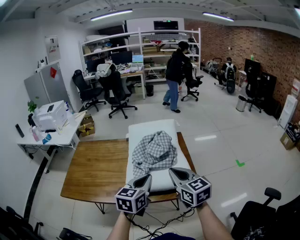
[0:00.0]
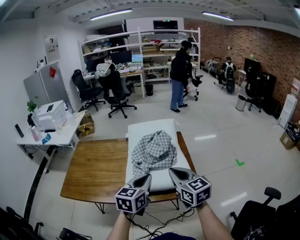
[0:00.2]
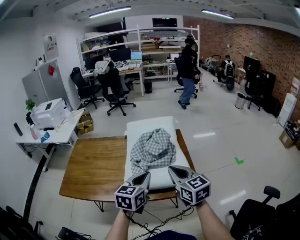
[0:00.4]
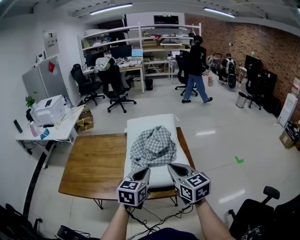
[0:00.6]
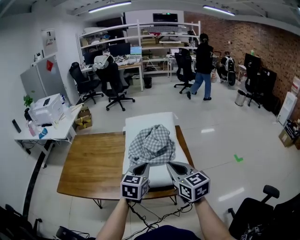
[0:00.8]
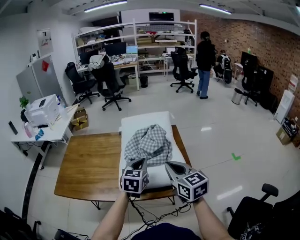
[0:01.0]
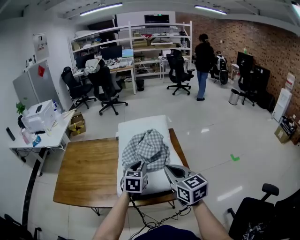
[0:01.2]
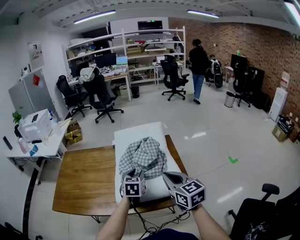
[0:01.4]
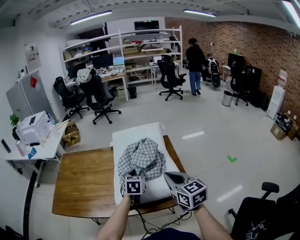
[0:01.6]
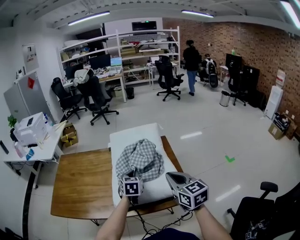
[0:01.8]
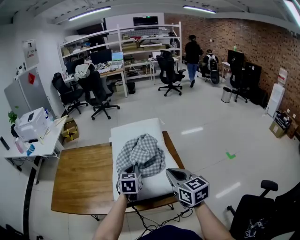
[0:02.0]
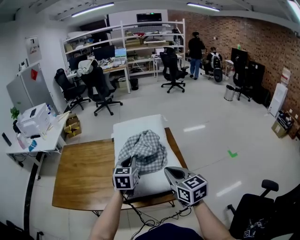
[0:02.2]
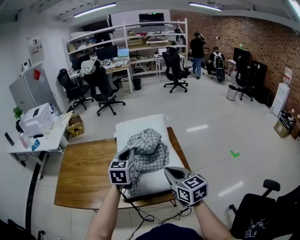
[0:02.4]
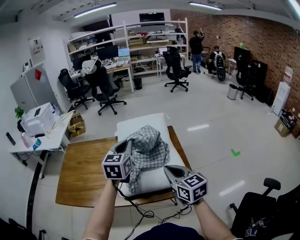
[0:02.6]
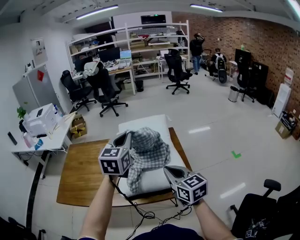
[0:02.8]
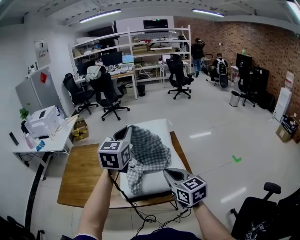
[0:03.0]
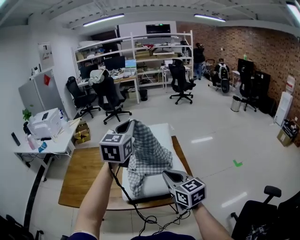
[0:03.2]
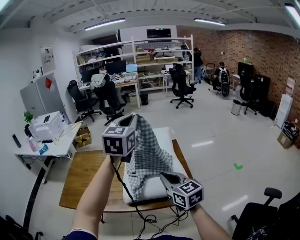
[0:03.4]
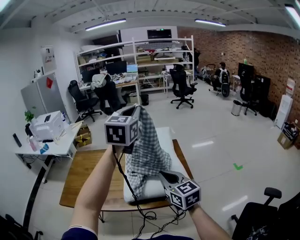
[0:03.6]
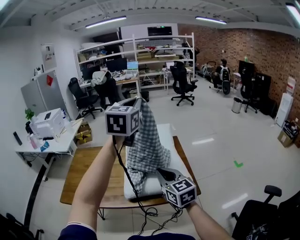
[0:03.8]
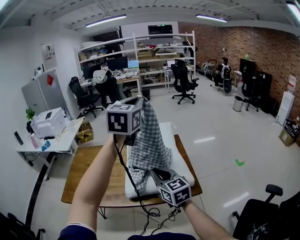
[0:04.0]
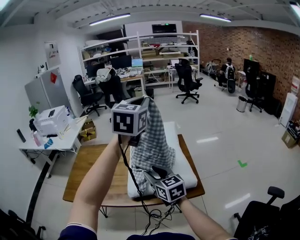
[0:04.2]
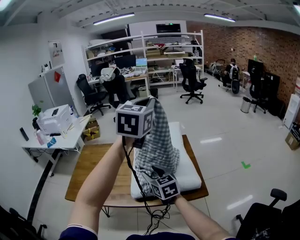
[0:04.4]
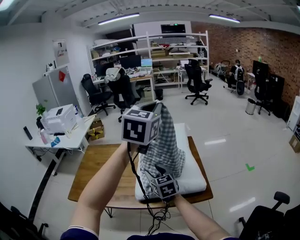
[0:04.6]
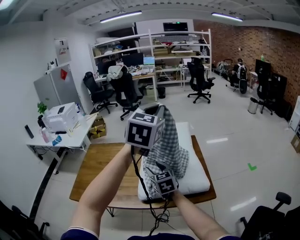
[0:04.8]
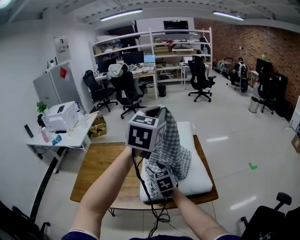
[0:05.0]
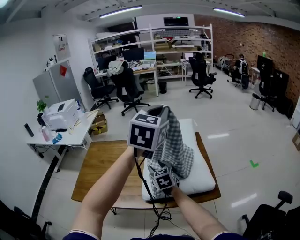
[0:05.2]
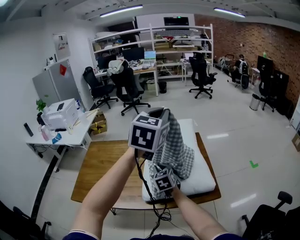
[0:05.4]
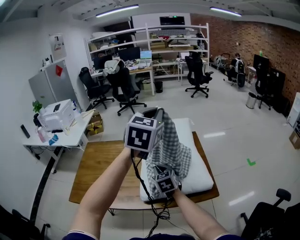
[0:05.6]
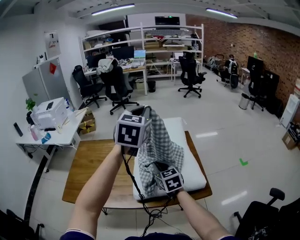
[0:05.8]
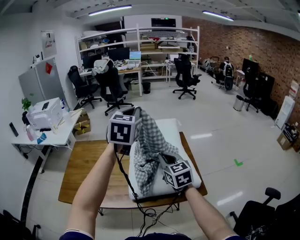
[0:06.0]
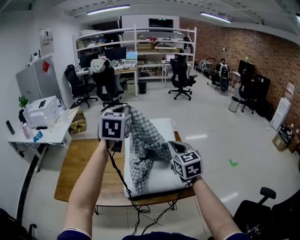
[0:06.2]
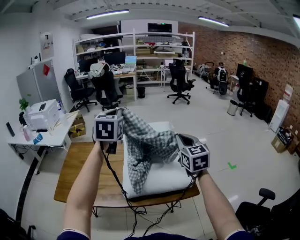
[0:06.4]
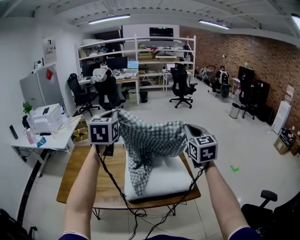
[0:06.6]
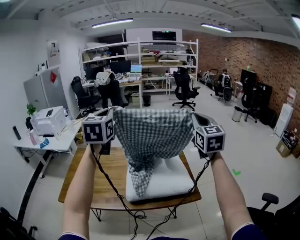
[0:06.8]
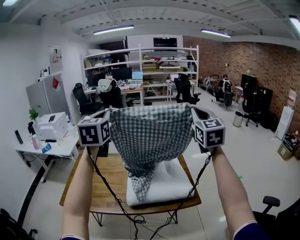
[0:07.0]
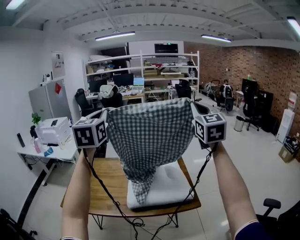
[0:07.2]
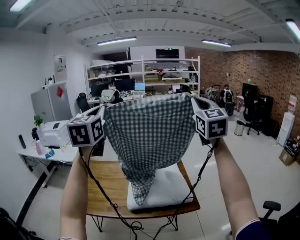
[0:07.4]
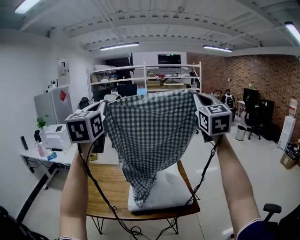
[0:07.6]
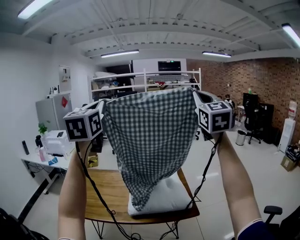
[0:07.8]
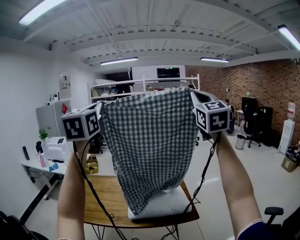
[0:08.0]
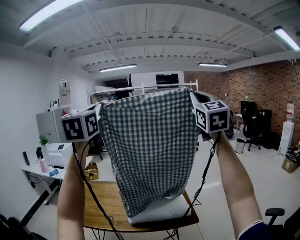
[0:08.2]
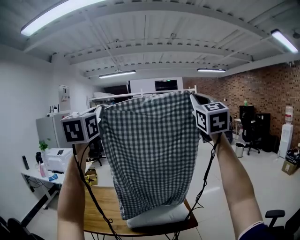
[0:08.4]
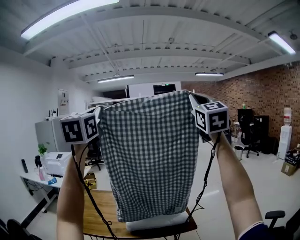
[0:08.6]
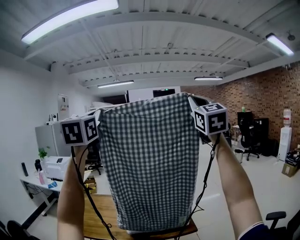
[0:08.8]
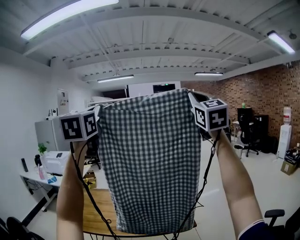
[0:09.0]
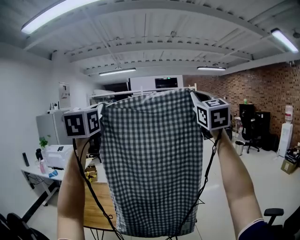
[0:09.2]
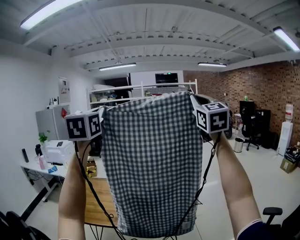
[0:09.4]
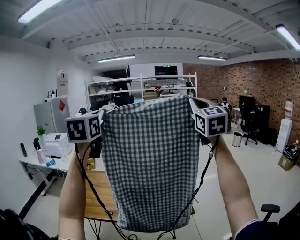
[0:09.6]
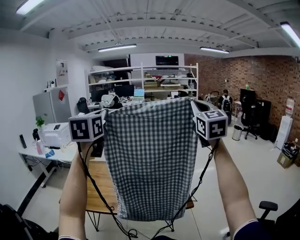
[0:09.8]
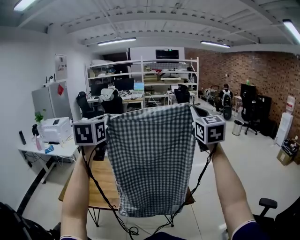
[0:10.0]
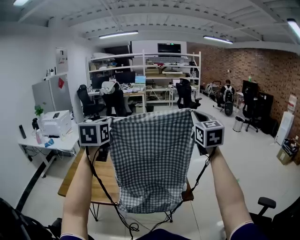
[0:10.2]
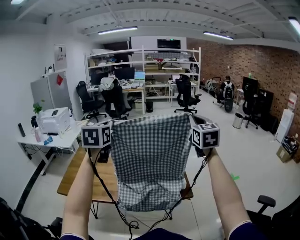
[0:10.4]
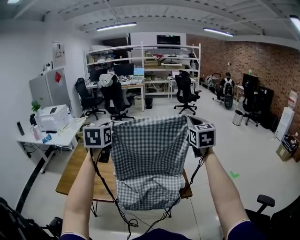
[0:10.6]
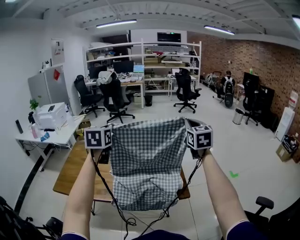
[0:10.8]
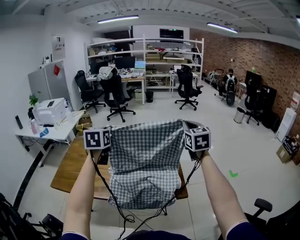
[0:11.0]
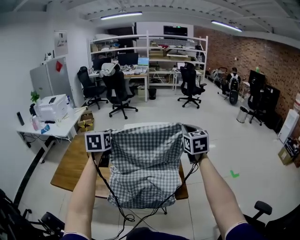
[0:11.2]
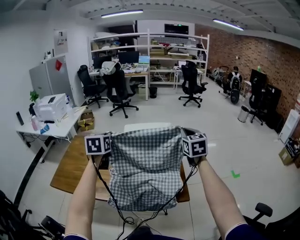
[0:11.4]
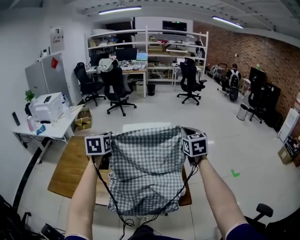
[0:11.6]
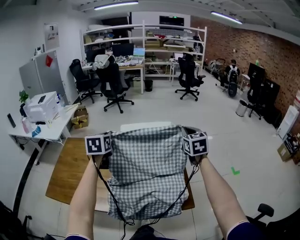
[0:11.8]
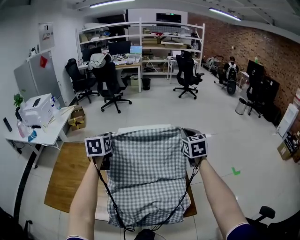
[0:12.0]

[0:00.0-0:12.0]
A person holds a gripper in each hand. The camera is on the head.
0:00.0 to 0:01.6: The right gripper shifts by some 5 cm. Meanwhile the left gripper moves forward and downward, some 20 cm, rotates roughly 20 degrees, and opens up.
0:01.6 to 0:03.0: The left gripper travels upward by about 30 cm, swivels some 30 degrees, and closes.
0:03.0 to 0:04.4: The left gripper goes about 10 cm upward. The right gripper travels to the left and forward by approximately 15 cm, and opens up.
0:04.4 to 0:06.0: The right gripper goes some 10 cm to the right and forward, reaches some 10 cm downward, then returns, and closes its fingers. Meanwhile the left gripper heads downward, to the left and forward, covering about 10 cm.
0:06.0 to 0:07.6: The left gripper is displaced upward, backward and to the left by some 30 cm, and turns by approximately 30 degrees. The right gripper heads upward, covering some 40 cm, and points its fingers approximately 30 degrees further upward.
0:07.6 to 0:09.0: The grippers both shift upward and backward by about 15 cm.
0:09.0 to 0:10.4: The grippers both shift downward and forward by some 35 cm. The right gripper turns by approximately 30 degrees; the left gripper changes its angle by some 30 degrees.
0:10.4 to 0:12.0: Both grippers travel together forward and downward, some 30 cm. The right gripper swivels some 20 degrees.

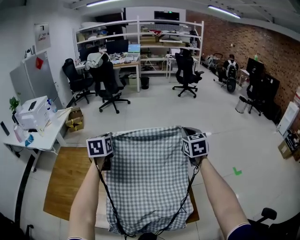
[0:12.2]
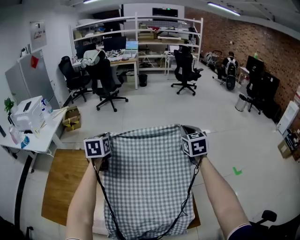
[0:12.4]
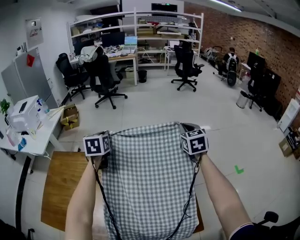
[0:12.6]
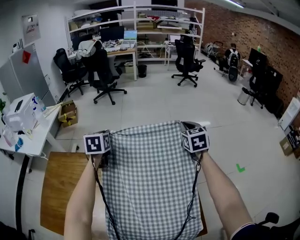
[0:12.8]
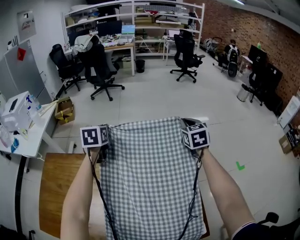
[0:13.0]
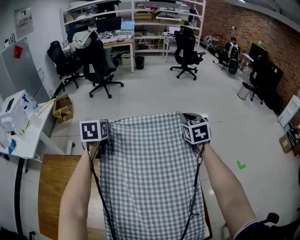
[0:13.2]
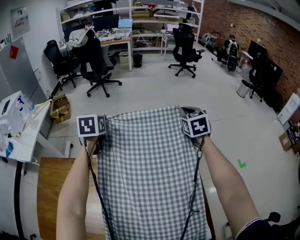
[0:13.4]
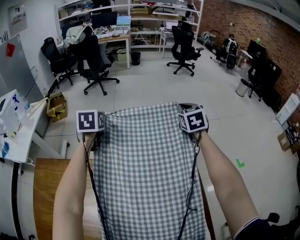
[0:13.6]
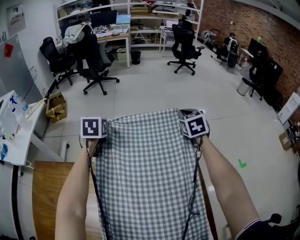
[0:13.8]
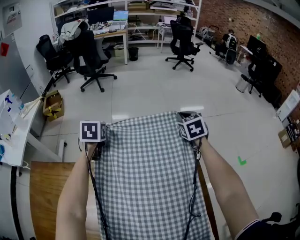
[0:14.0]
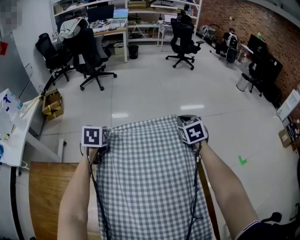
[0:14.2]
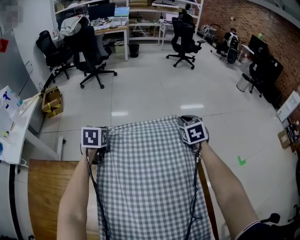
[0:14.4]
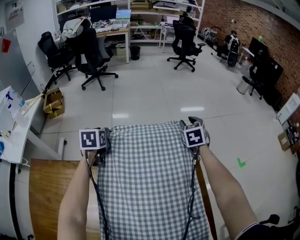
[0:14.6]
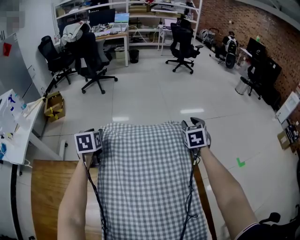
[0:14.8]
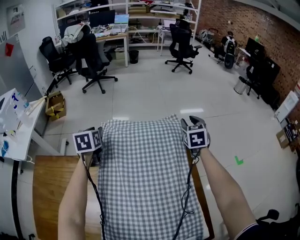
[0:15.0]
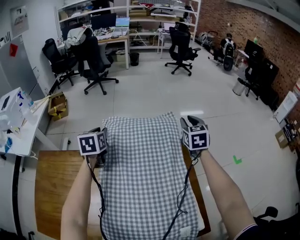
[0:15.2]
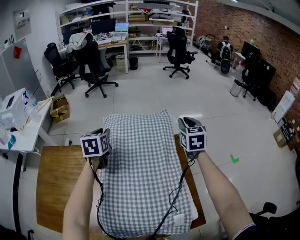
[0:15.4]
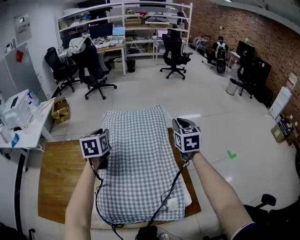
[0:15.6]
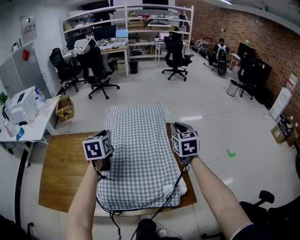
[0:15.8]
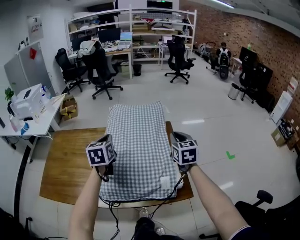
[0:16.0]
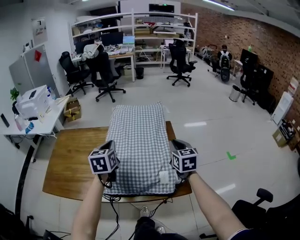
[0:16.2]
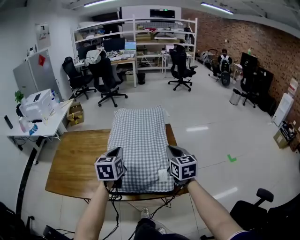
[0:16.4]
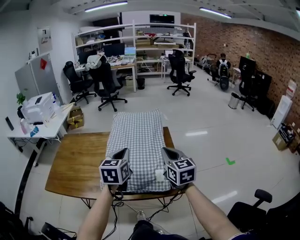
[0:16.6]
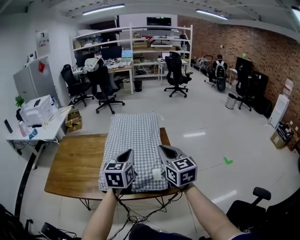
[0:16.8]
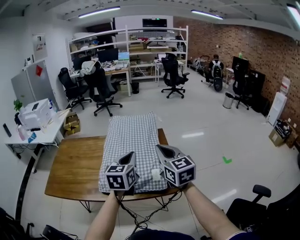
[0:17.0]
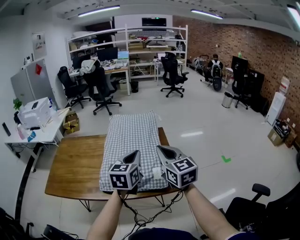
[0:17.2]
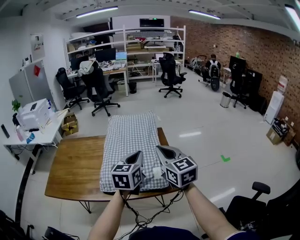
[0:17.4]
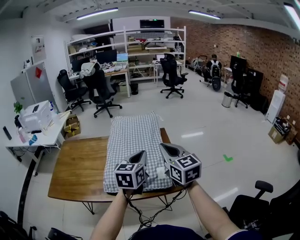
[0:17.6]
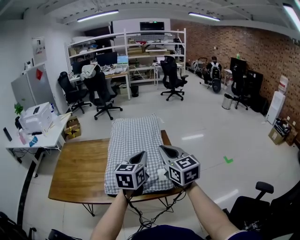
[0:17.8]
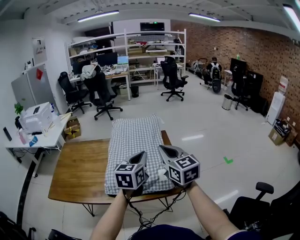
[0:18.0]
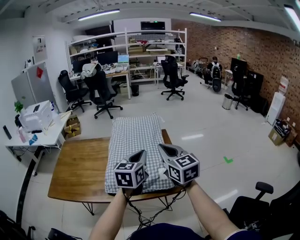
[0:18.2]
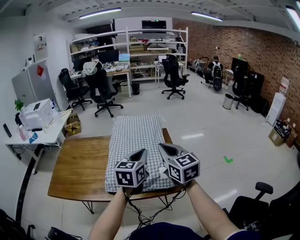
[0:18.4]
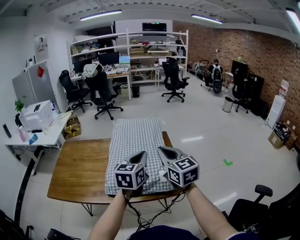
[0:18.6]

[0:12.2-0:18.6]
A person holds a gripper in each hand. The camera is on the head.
0:12.2 to 0:13.8: The two grippers go roughly 30 cm forward and downward.
0:13.8 to 0:15.4: The grippers both shift backward by approximately 15 cm. The left gripper opens, while the right gripper opens, then closes once more.
0:15.4 to 0:17.0: The right gripper travels backward by approximately 40 cm, and changes its angle by approximately 30 degrees. The left gripper goes roughly 40 cm backward and to the right, and closes up.
0:17.0 to 0:18.6: The grippers move only a little.

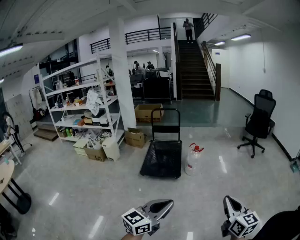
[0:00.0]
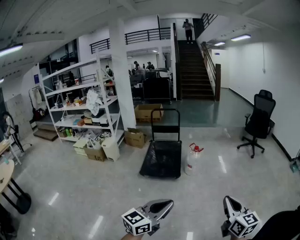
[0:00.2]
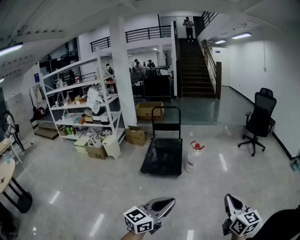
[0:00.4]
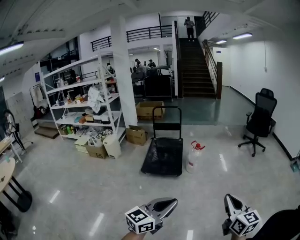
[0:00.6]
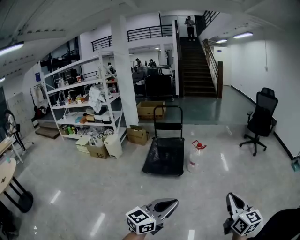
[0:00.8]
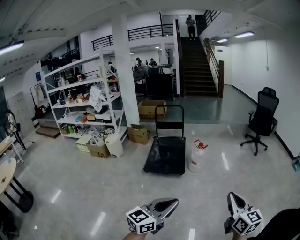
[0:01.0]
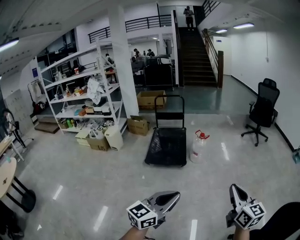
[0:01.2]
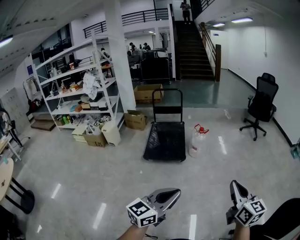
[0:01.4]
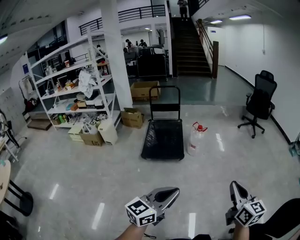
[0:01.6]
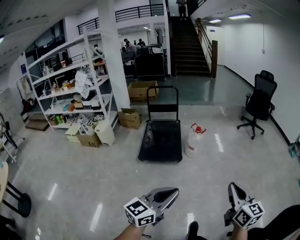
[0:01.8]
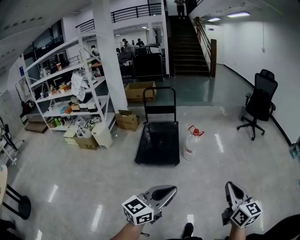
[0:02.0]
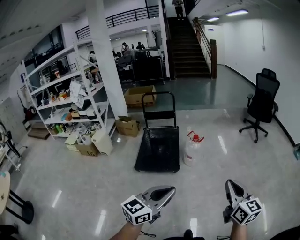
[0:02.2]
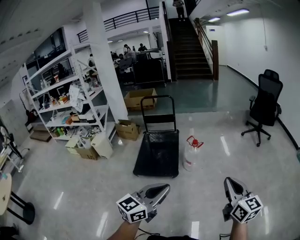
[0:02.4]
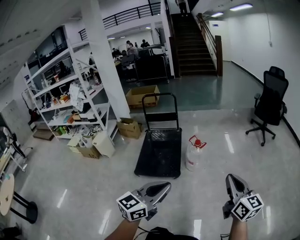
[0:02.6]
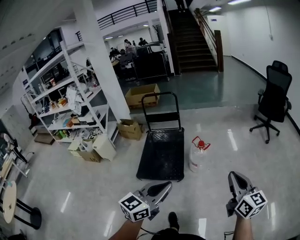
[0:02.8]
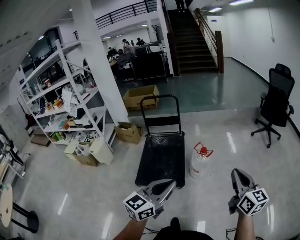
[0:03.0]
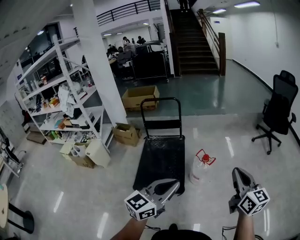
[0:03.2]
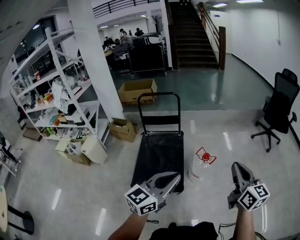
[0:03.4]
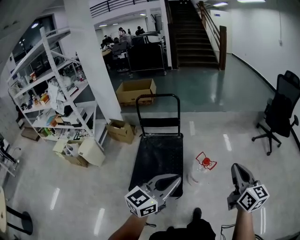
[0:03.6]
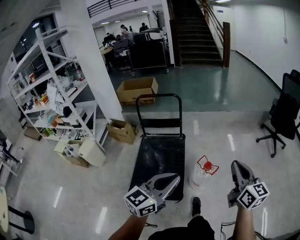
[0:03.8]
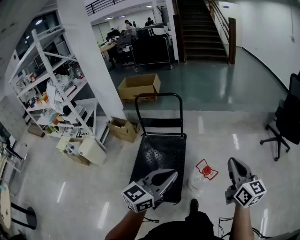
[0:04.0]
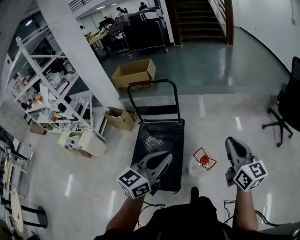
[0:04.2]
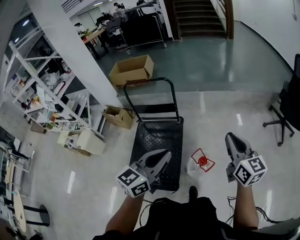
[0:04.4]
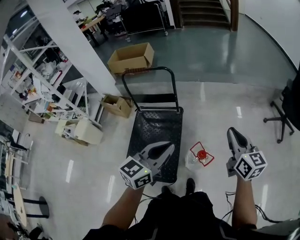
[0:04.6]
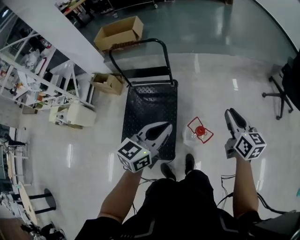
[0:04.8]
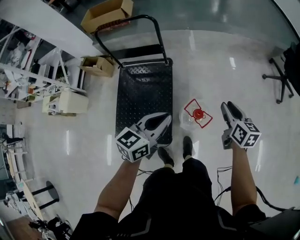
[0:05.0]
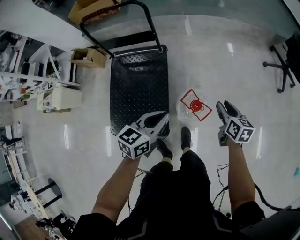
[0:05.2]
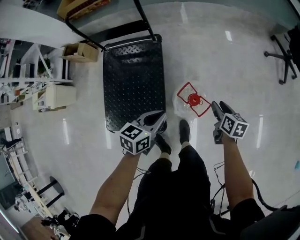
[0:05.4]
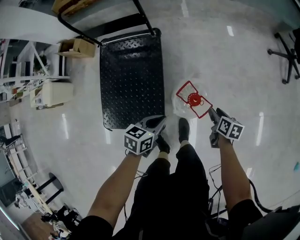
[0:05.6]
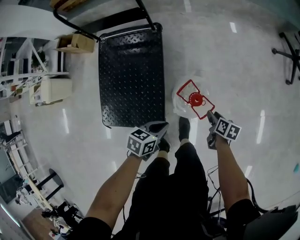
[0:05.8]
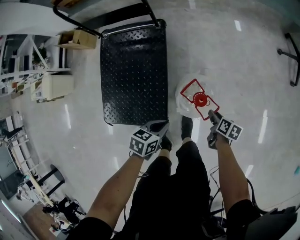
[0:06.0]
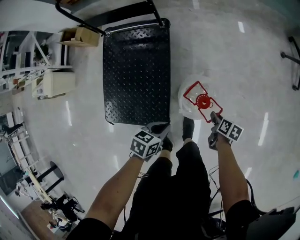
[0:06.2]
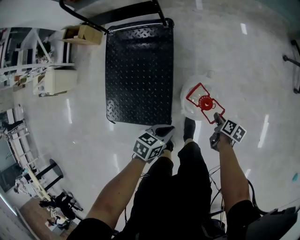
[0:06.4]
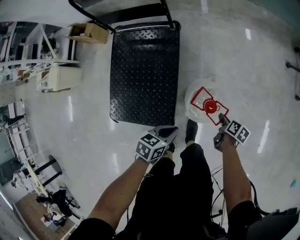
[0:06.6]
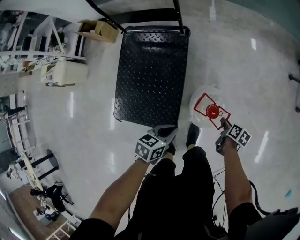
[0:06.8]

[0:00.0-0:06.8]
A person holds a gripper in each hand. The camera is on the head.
0:00.0 to 0:01.4: Both grippers move to the left, about 10 cm.
0:01.4 to 0:02.8: Both grippers are carried forward, roughly 50 cm.
0:02.8 to 0:04.0: Both grippers are carried forward, some 50 cm.
0:04.0 to 0:05.4: Both grippers travel together downward and forward, roughly 50 cm. The left gripper tips its fingers downward by some 30 degrees; the right gripper angles its fingers downward, by some 40 degrees, and opens its fingers.
0:05.4 to 0:06.8: The right gripper is displaced downward by about 15 cm, rotates roughly 30 degrees, and closes, while the left gripper moves downward, some 10 cm.
